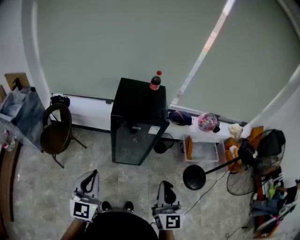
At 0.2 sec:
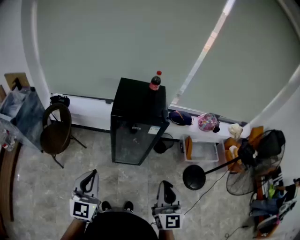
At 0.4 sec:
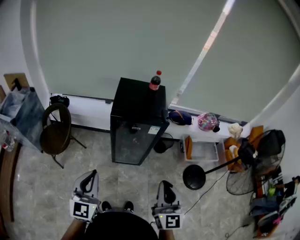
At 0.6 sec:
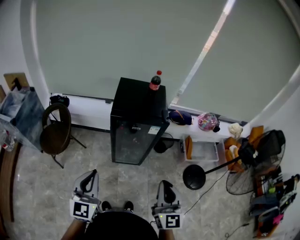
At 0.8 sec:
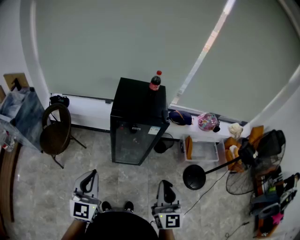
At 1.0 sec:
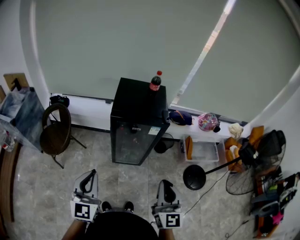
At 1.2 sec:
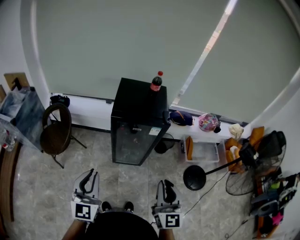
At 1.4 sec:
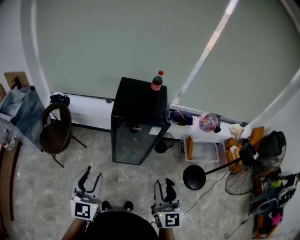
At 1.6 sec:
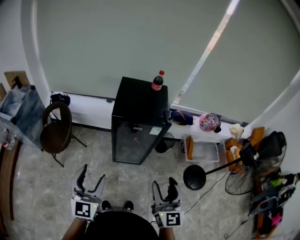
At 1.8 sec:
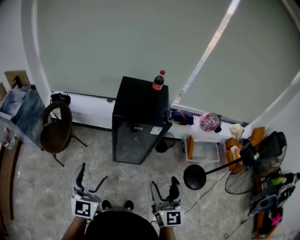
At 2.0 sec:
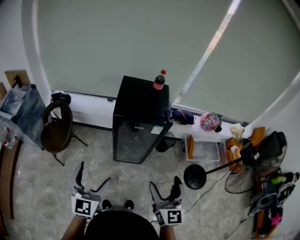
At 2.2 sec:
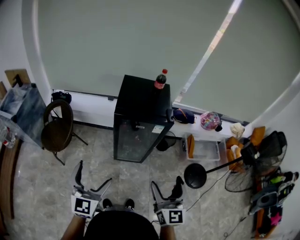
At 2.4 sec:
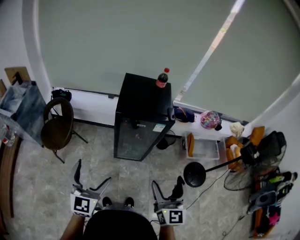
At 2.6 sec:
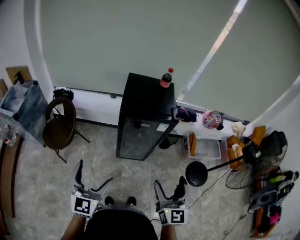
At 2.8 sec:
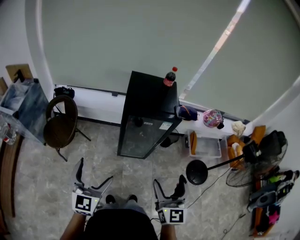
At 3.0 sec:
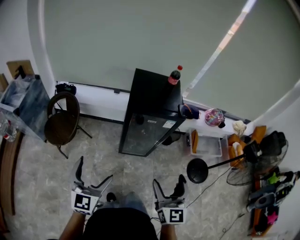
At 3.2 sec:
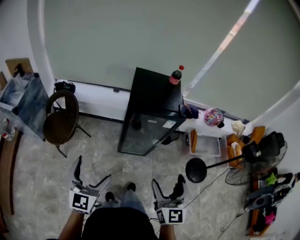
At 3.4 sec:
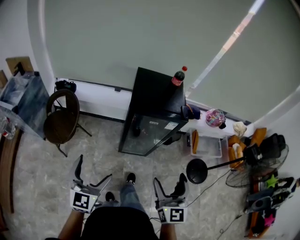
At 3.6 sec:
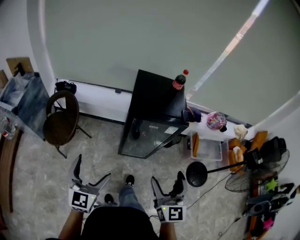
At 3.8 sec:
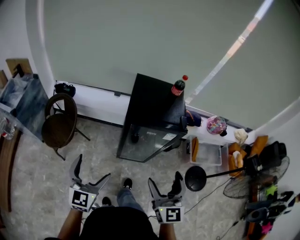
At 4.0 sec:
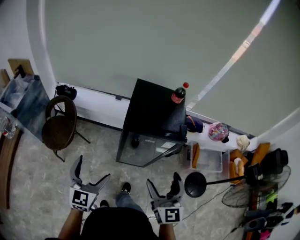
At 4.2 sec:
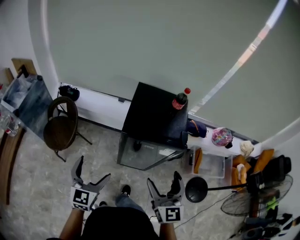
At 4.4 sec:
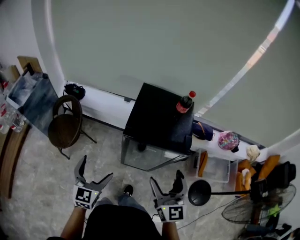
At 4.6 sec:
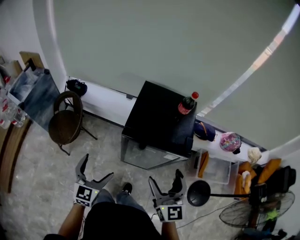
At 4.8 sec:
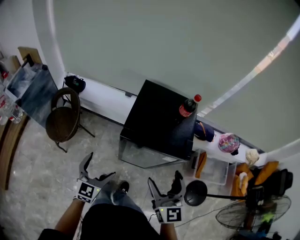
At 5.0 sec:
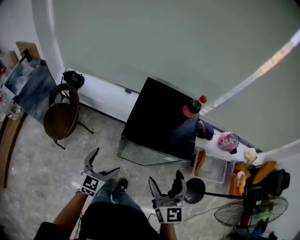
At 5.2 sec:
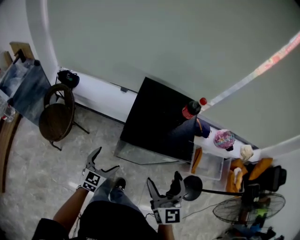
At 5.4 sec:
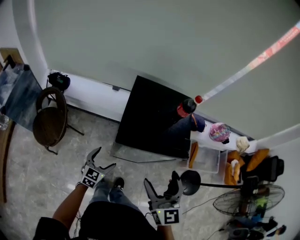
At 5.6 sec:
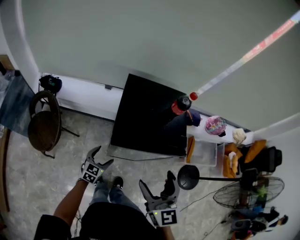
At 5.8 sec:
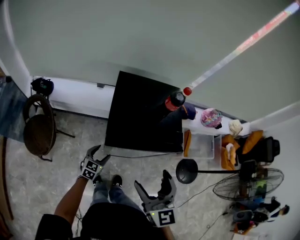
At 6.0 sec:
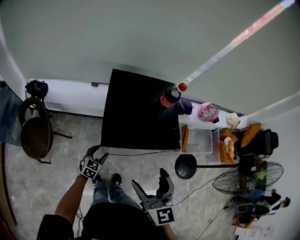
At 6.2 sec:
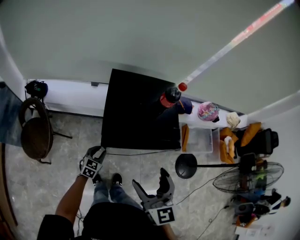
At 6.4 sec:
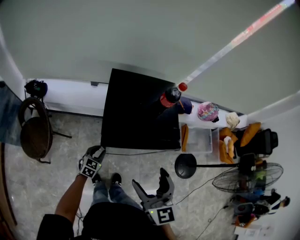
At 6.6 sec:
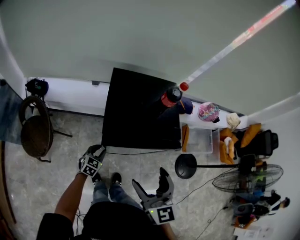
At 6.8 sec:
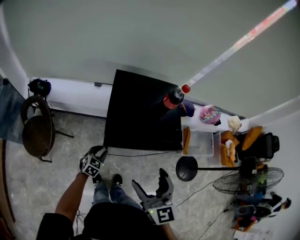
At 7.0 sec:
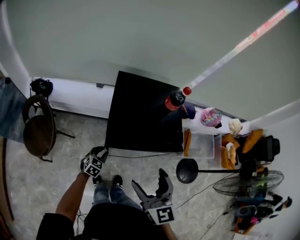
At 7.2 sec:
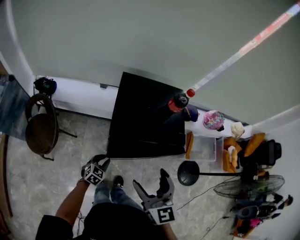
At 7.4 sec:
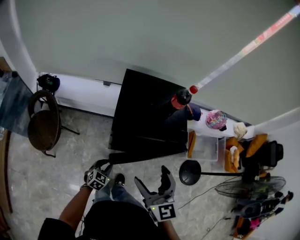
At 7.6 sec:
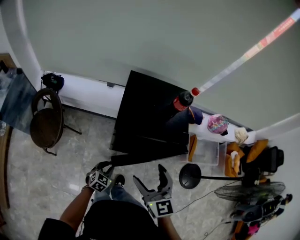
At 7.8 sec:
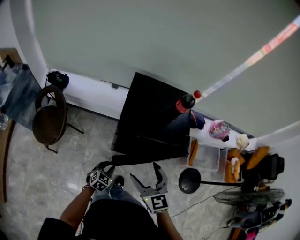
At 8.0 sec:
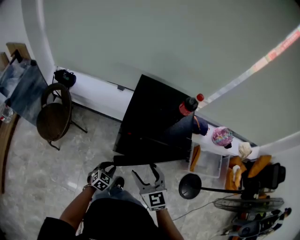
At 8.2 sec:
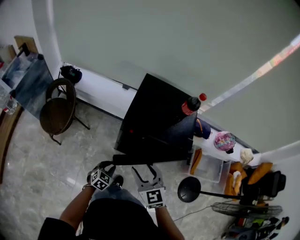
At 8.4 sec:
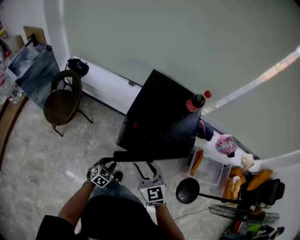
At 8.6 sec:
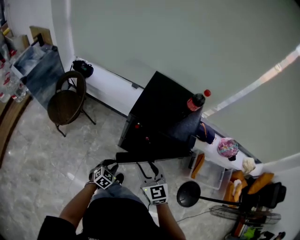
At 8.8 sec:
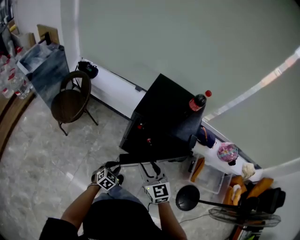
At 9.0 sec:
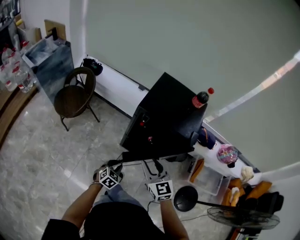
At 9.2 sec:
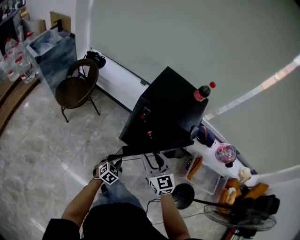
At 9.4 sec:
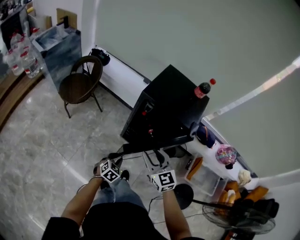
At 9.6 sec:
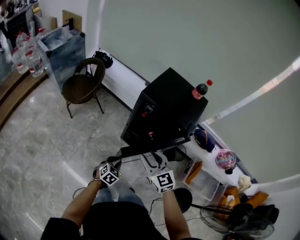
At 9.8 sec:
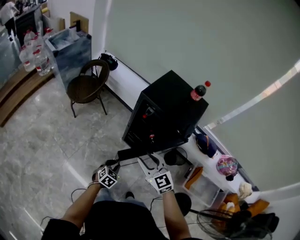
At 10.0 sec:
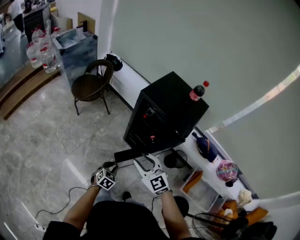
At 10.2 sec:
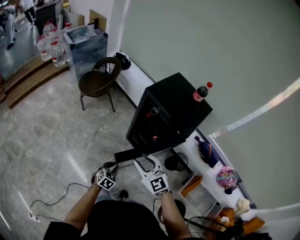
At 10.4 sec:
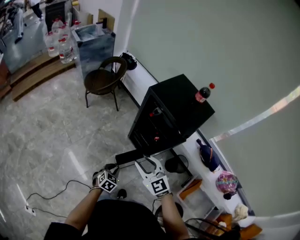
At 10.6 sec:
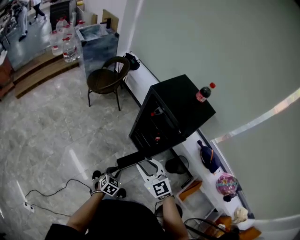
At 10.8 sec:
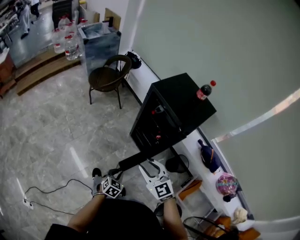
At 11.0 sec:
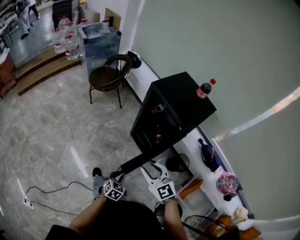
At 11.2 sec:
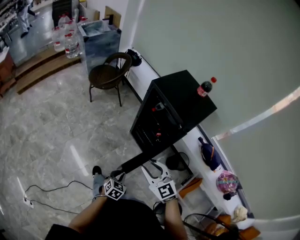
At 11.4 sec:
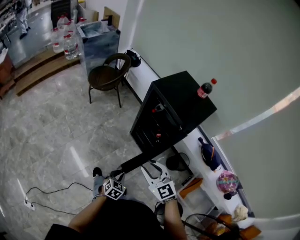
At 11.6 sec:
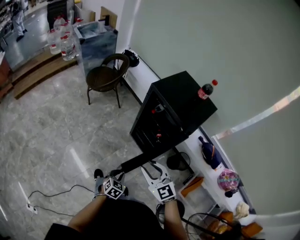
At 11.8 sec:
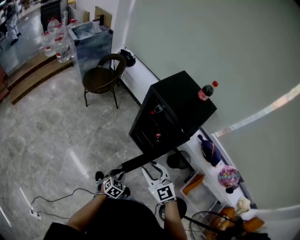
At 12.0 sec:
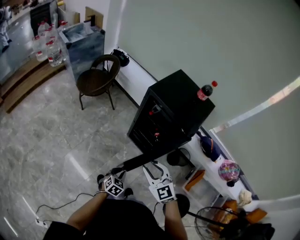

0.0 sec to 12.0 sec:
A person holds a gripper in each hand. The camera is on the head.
0.0 sec to 1.6 sec: The right gripper opens. The left gripper opens its fingers.
1.6 sec to 3.0 sec: Both grippers move to the left, some 5 cm. The left gripper opens, while the right gripper opens.
3.0 sec to 4.4 sec: Both grippers move forward, about 20 cm.
4.4 sec to 6.0 sec: The right gripper moves forward, roughly 5 cm, while the left gripper is displaced downward and forward by approximately 30 cm, rotates about 40 degrees, and closes up.
6.0 sec to 7.6 sec: The left gripper travels backward by about 10 cm.
7.6 sec to 9.0 sec: The left gripper is displaced backward by about 10 cm, while the right gripper moves downward and backward, roughly 10 cm, changes its angle by some 20 degrees, and closes.
9.0 sec to 10.4 sec: The right gripper ends up some 15 cm from where it was, and changes its angle by some 40 degrees. Meanwhile the left gripper shifts by approximately 20 cm, and turns by roughly 30 degrees.
10.4 sec to 12.0 sec: The left gripper travels backward and back again, approximately 10 cm each way.

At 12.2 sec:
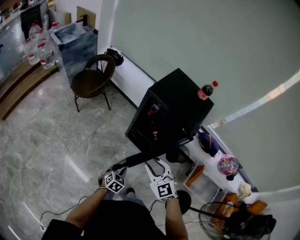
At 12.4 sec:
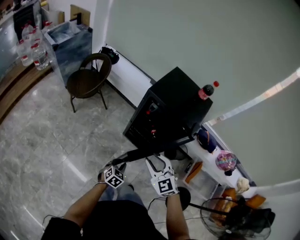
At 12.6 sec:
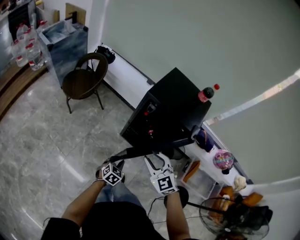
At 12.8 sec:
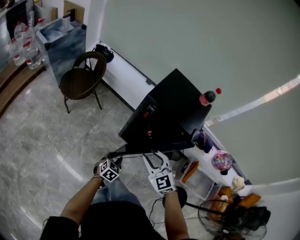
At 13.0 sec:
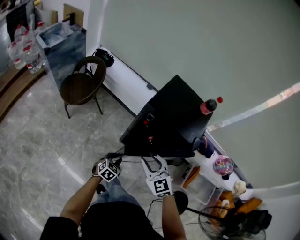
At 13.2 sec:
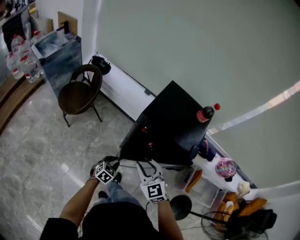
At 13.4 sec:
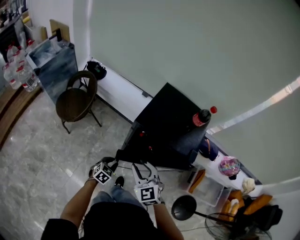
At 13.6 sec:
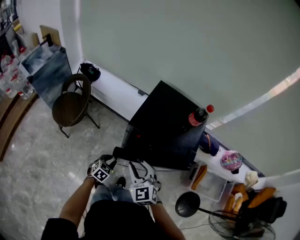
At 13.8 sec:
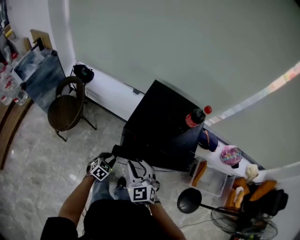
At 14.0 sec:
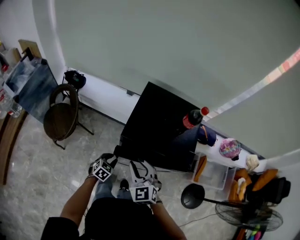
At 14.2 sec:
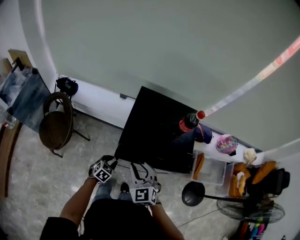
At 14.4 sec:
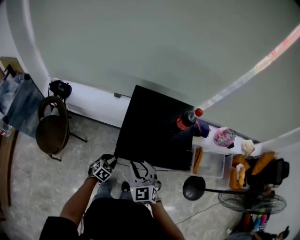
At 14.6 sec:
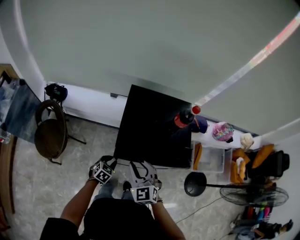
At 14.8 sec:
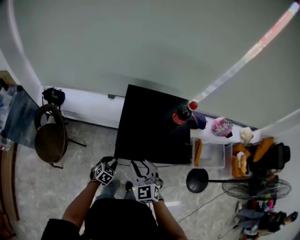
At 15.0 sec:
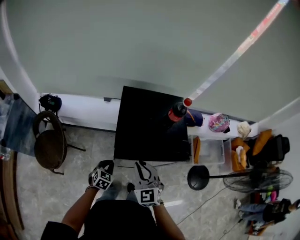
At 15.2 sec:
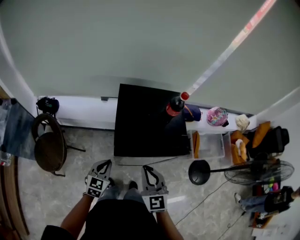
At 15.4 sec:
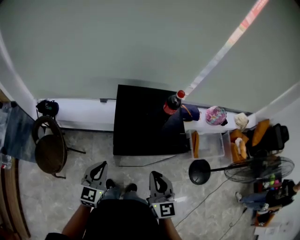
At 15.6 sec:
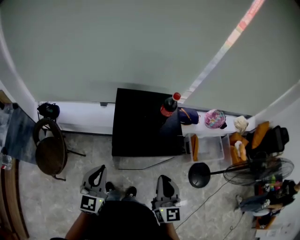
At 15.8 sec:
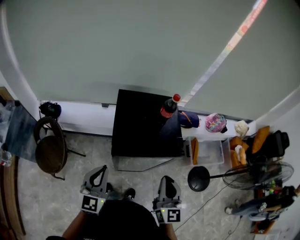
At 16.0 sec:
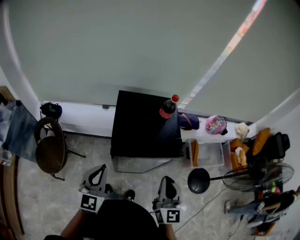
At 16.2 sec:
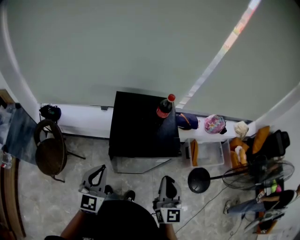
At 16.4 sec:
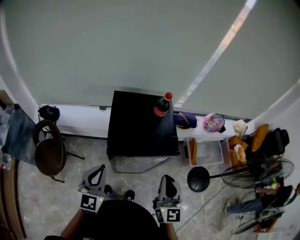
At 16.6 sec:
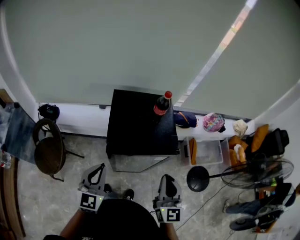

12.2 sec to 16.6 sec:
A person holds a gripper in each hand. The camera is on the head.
12.2 sec to 13.6 sec: Both grippers travel together forward, some 20 cm.
13.6 sec to 15.2 sec: The left gripper moves upward and forward, approximately 15 cm, and swivels about 20 degrees, while the right gripper shifts approximately 5 cm upward, and rotates approximately 40 degrees.
15.2 sec to 16.6 sec: The right gripper travels to the right and upward by approximately 15 cm, and swivels some 20 degrees. Meanwhile the left gripper heads upward, covering about 15 cm, and turns by roughly 20 degrees.

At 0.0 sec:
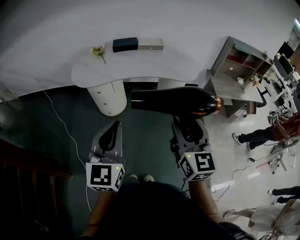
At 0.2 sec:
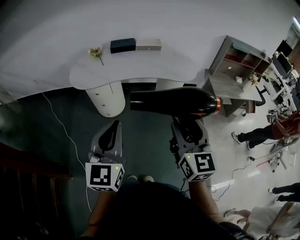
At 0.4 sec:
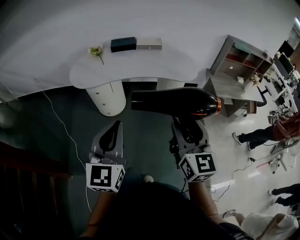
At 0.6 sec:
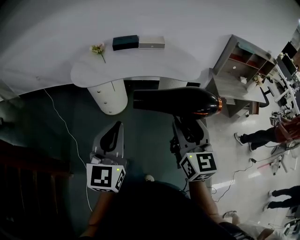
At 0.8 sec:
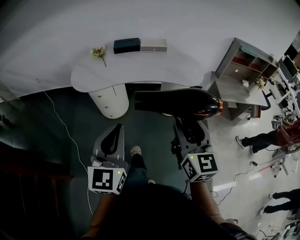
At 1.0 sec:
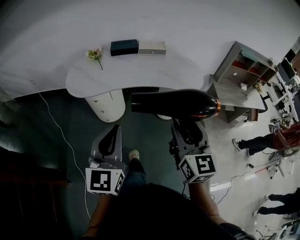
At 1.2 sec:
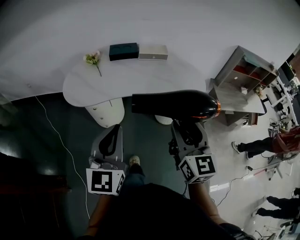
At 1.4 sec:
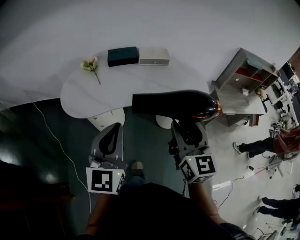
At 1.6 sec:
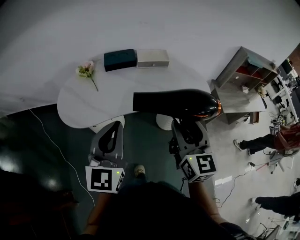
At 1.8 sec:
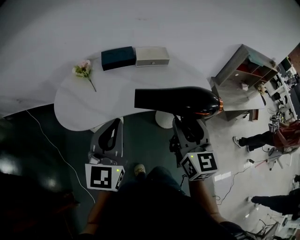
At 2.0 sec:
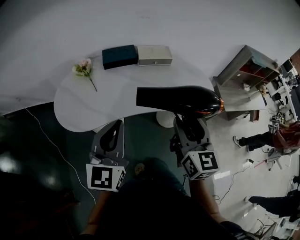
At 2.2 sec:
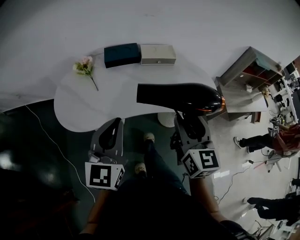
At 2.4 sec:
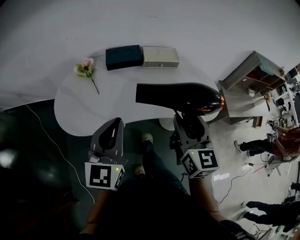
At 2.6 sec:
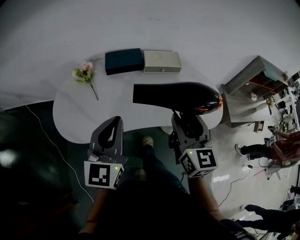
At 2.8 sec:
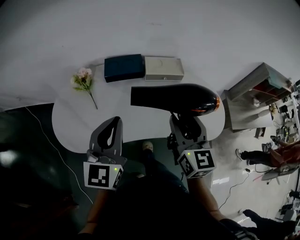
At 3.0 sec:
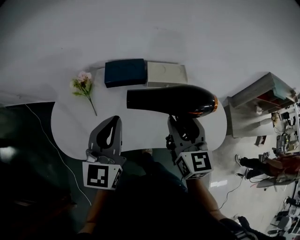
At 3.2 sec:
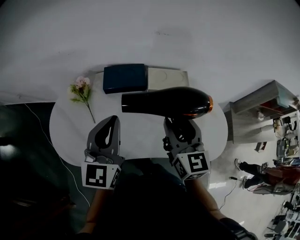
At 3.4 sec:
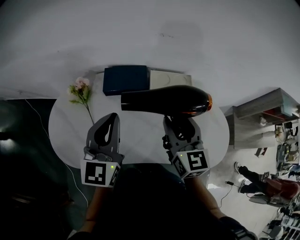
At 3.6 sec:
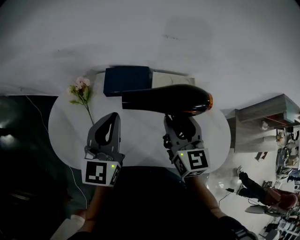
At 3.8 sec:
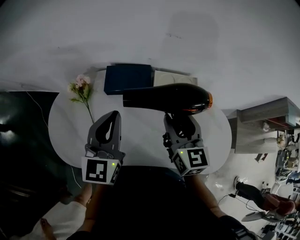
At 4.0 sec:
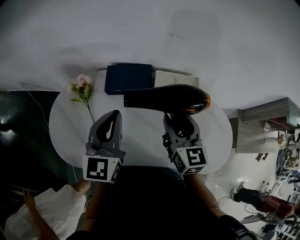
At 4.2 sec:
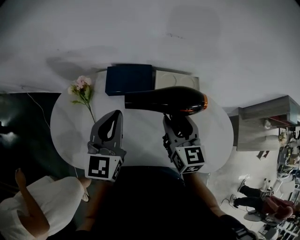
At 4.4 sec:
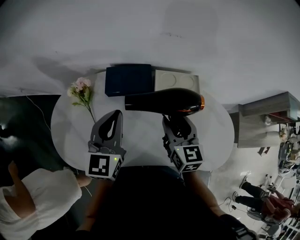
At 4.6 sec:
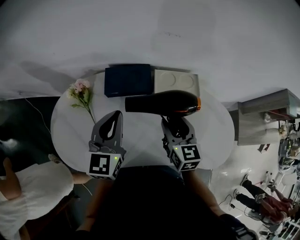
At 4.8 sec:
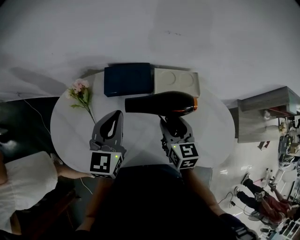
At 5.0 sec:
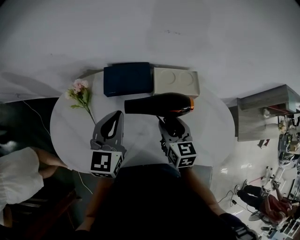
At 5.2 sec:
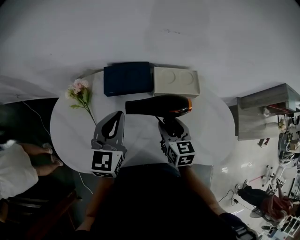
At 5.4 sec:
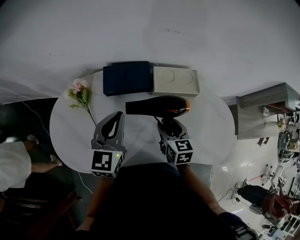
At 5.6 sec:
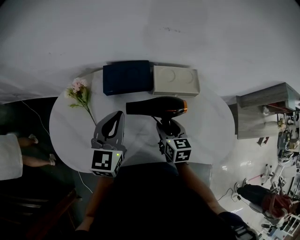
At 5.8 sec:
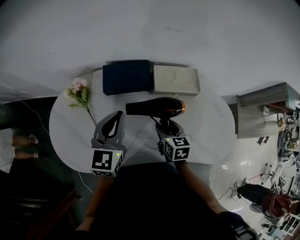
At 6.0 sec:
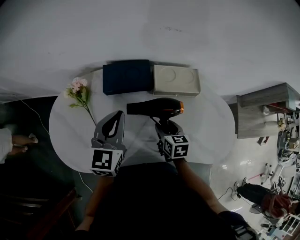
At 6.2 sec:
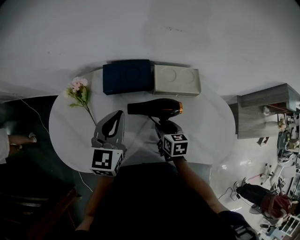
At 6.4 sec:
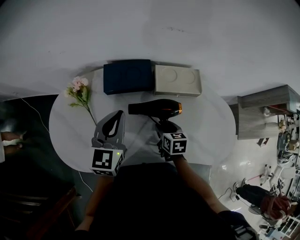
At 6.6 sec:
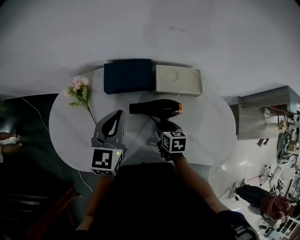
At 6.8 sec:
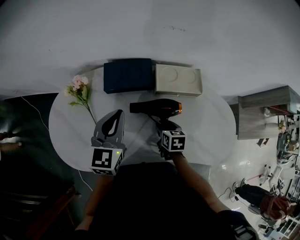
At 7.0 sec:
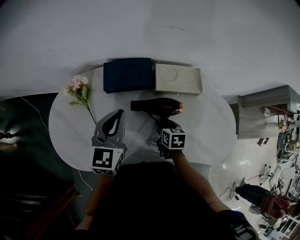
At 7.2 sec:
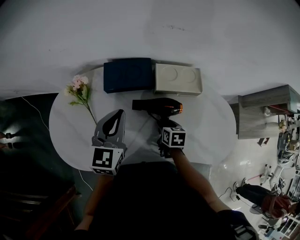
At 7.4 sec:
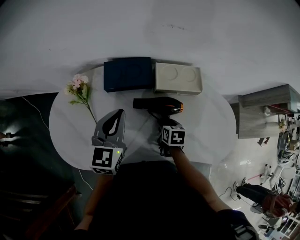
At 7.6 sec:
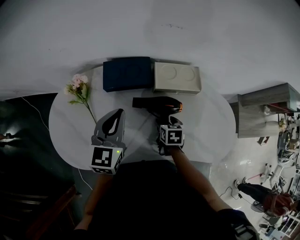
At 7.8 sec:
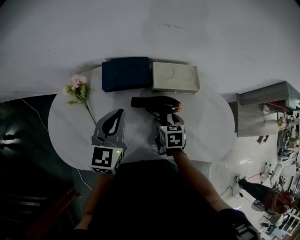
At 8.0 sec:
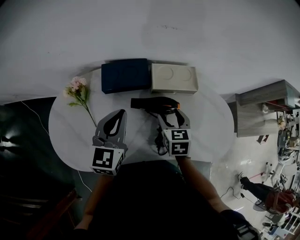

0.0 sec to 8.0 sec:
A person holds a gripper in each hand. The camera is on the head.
0.0 sec to 1.6 sec: Both grippers move forward, about 35 cm.
1.6 sec to 3.2 sec: The two grippers go some 30 cm forward.
3.2 sec to 4.8 sec: The right gripper shifts about 15 cm downward and forward. The left gripper heads forward and downward, covering about 15 cm.
4.8 sec to 6.4 sec: The right gripper moves downward, about 15 cm, and swivels approximately 30 degrees.
6.4 sec to 8.0 sec: The right gripper travels upward by roughly 10 cm.
